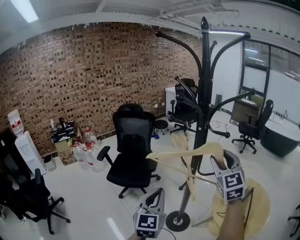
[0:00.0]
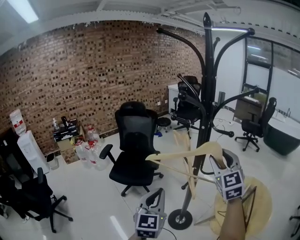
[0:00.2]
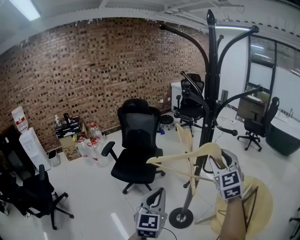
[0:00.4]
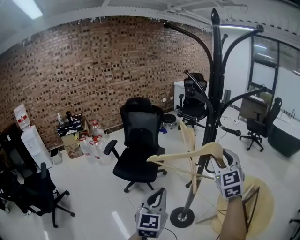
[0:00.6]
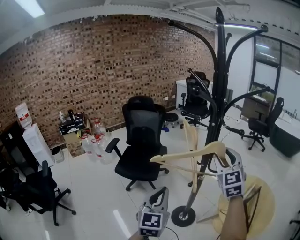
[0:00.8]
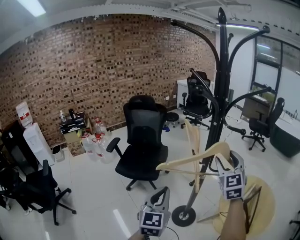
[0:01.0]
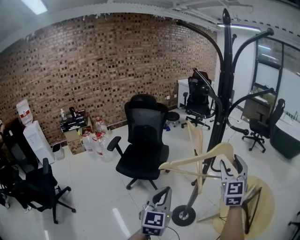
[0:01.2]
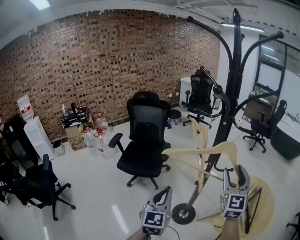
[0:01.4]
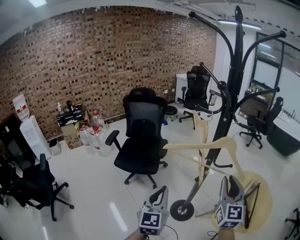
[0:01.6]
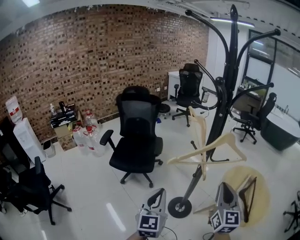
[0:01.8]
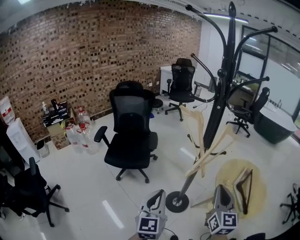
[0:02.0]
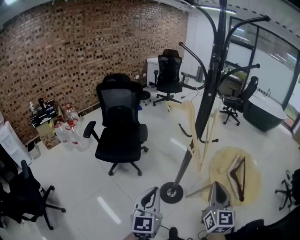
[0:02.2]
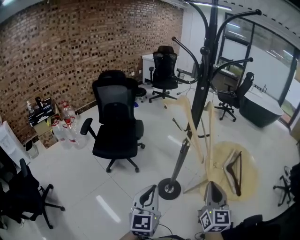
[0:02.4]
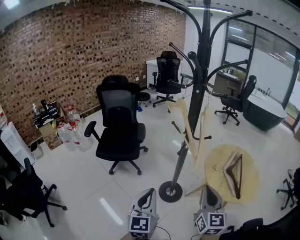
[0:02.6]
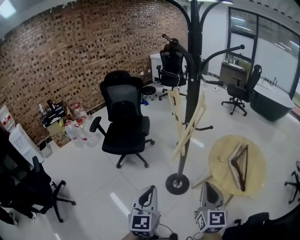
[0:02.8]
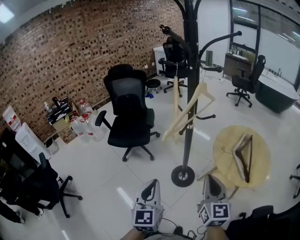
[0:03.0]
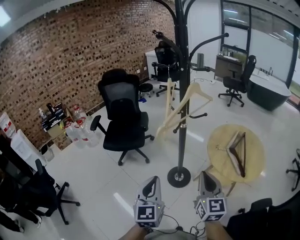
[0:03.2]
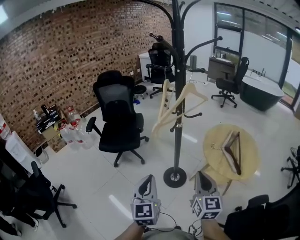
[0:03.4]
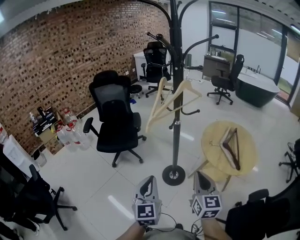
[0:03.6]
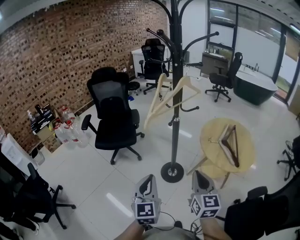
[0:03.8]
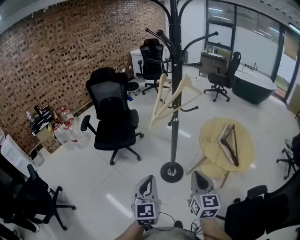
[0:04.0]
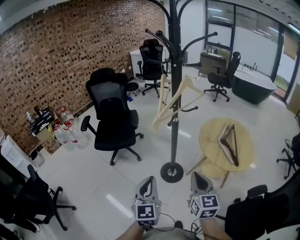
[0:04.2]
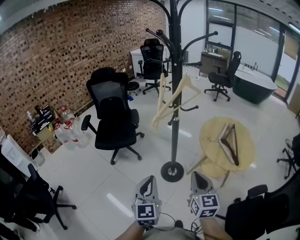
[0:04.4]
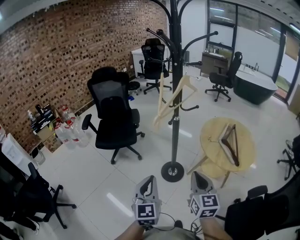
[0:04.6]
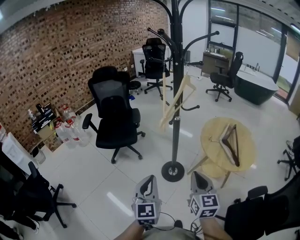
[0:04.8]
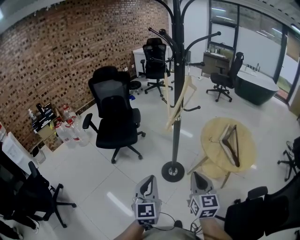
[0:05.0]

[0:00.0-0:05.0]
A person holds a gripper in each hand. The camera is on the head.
0:00.0 to 0:01.6: The right gripper moves downward and backward, some 15 cm. The left gripper heads to the left and downward, covering roughly 10 cm.
0:01.6 to 0:03.4: The right gripper is displaced backward and downward by about 30 cm, and closes. The left gripper shifts about 20 cm backward.
0:03.4 to 0:05.0: The right gripper changes place by some 5 cm.

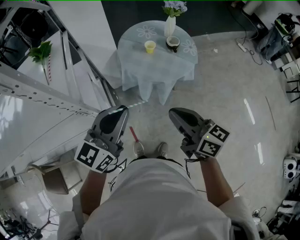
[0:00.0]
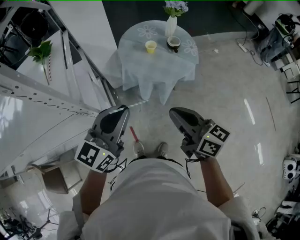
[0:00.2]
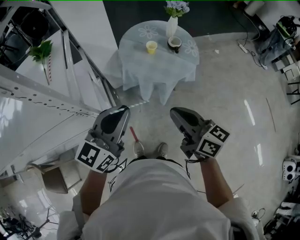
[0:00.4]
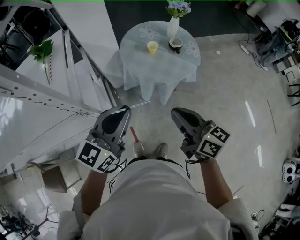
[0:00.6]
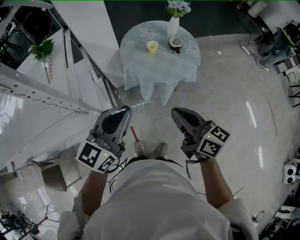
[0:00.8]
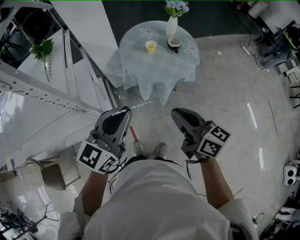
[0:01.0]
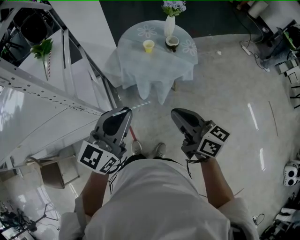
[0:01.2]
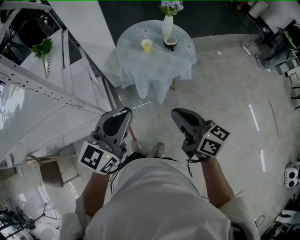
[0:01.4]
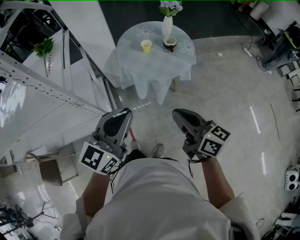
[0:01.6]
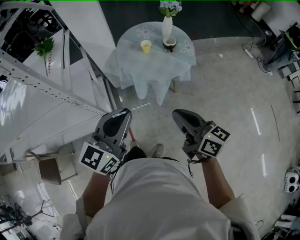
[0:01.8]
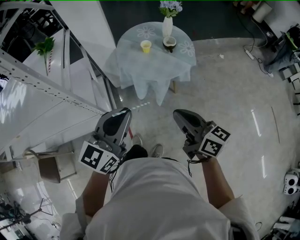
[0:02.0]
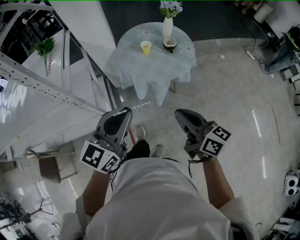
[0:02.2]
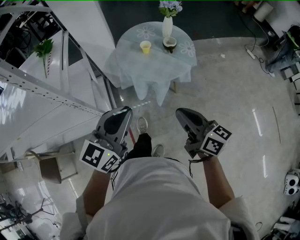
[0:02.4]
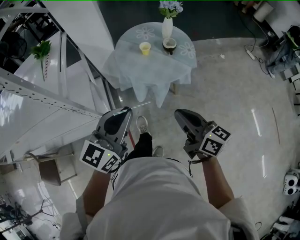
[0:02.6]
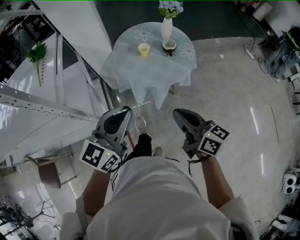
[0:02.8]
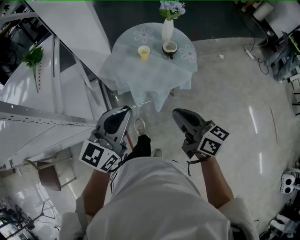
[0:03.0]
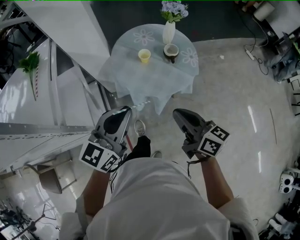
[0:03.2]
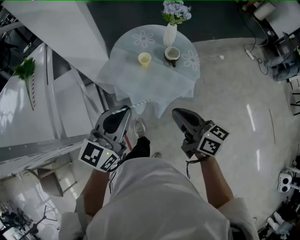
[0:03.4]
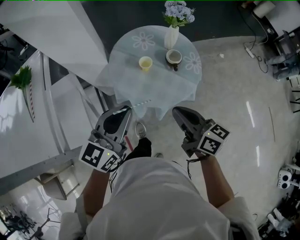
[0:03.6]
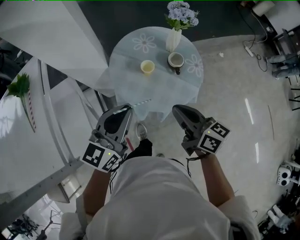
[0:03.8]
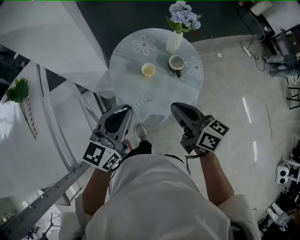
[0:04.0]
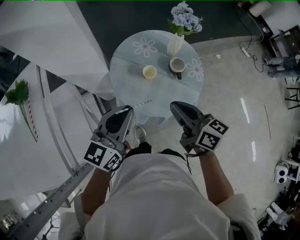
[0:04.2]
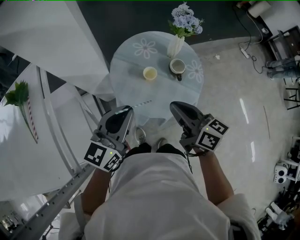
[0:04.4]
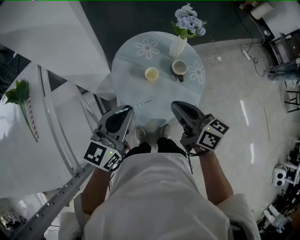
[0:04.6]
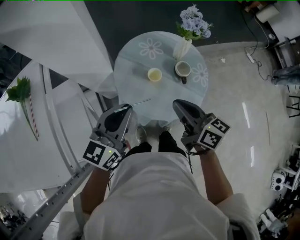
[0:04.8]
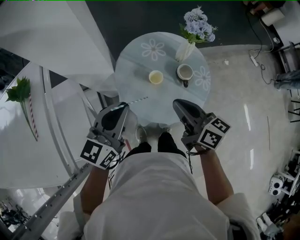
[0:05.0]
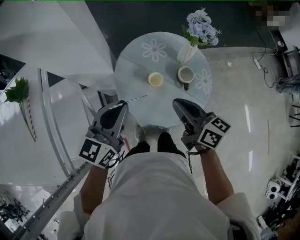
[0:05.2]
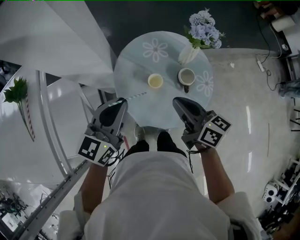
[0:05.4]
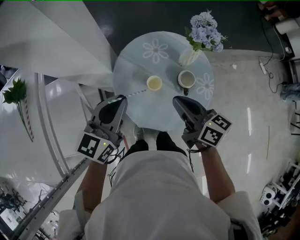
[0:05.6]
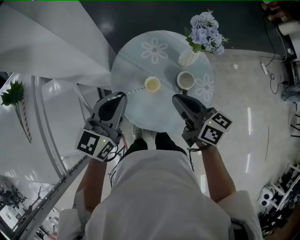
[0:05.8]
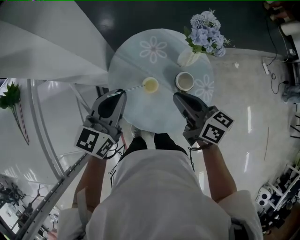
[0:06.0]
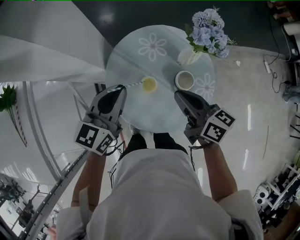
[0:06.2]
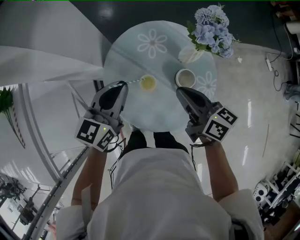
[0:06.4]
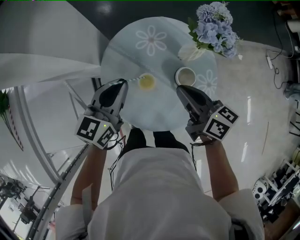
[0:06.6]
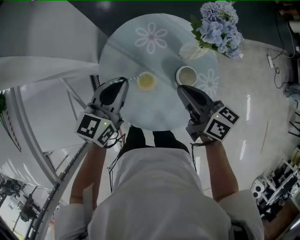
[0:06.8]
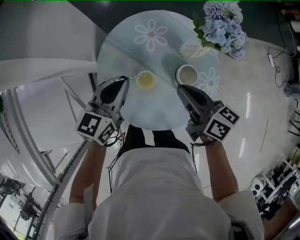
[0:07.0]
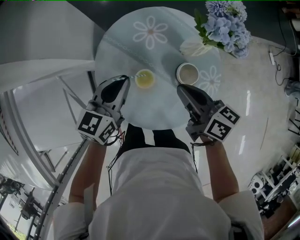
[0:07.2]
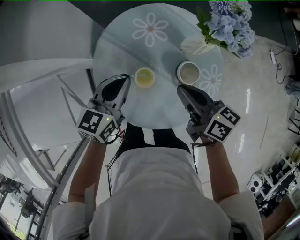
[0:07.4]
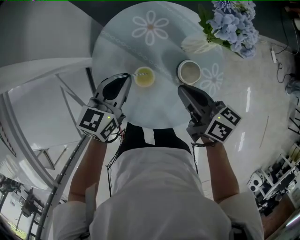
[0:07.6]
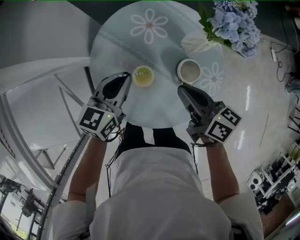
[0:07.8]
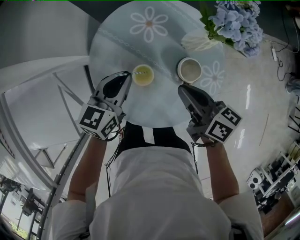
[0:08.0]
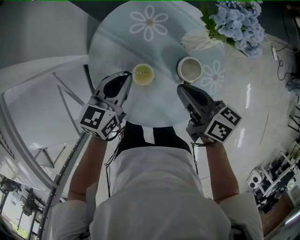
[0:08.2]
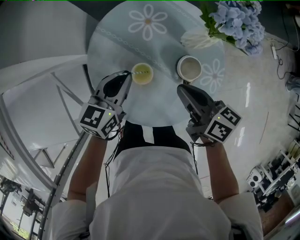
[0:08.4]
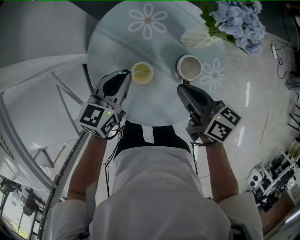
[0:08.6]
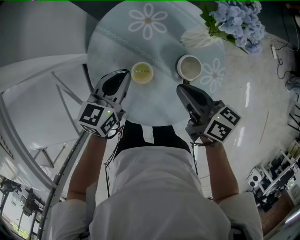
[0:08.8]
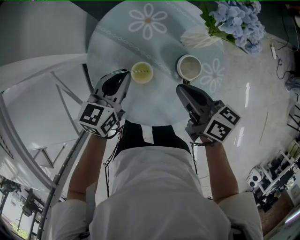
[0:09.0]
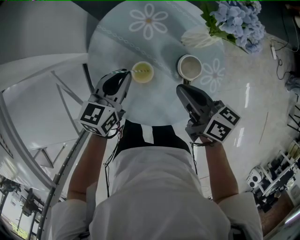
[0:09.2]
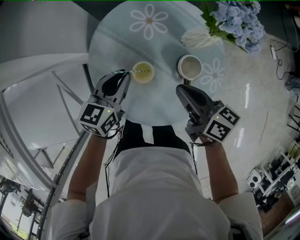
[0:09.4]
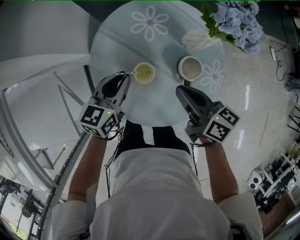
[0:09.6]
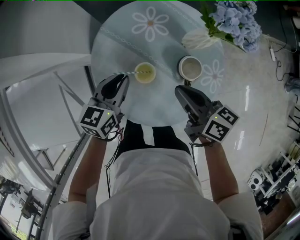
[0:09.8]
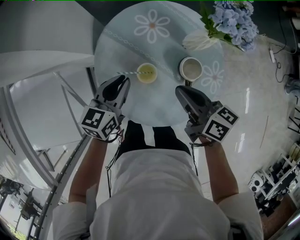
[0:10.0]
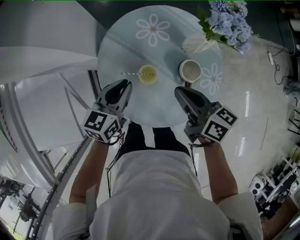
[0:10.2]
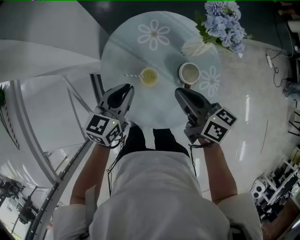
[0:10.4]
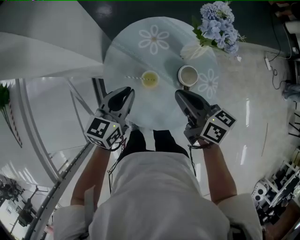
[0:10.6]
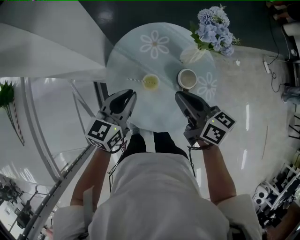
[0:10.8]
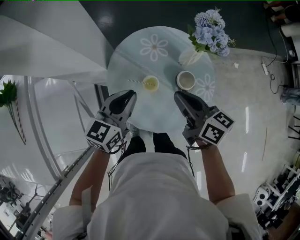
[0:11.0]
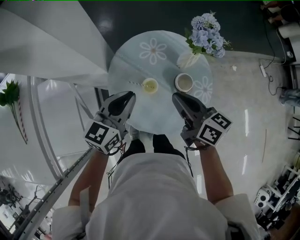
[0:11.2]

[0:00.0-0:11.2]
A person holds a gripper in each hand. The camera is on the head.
0:00.0 to 0:01.6: The left gripper heads to the right and backward, covering roughly 10 cm. The right gripper travels to the right by some 10 cm.
0:01.6 to 0:03.2: The grippers both shift forward by some 15 cm.
0:03.2 to 0:04.8: Both grippers travel together forward, about 20 cm.
0:04.8 to 0:06.4: The left gripper heads forward, downward and to the right, covering some 20 cm, while the right gripper shifts some 20 cm forward, to the right and downward.
0:06.4 to 0:08.0: The left gripper heads downward, covering roughly 15 cm, while the right gripper is displaced downward by approximately 10 cm.
0:08.0 to 0:09.6: The grippers stay close to where they were, moving slightly.
0:09.6 to 0:11.2: Both grippers travel together upward, some 15 cm.

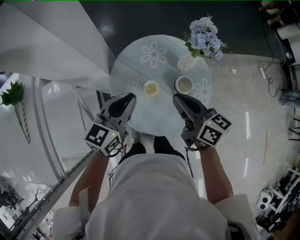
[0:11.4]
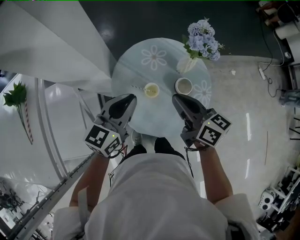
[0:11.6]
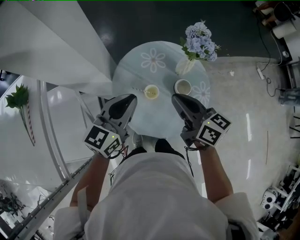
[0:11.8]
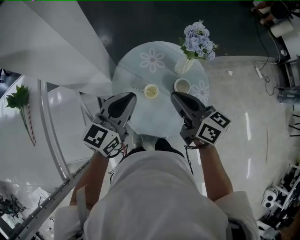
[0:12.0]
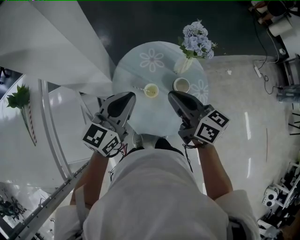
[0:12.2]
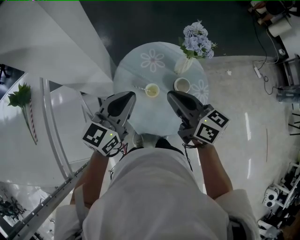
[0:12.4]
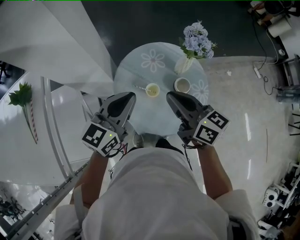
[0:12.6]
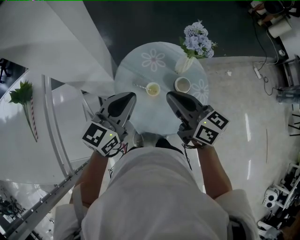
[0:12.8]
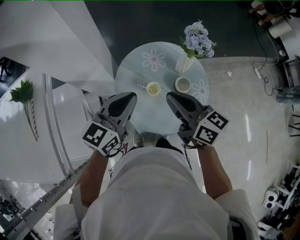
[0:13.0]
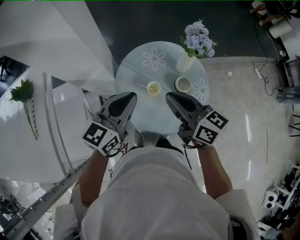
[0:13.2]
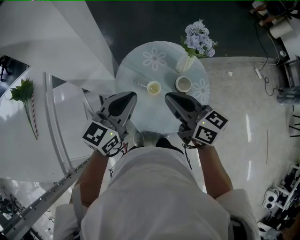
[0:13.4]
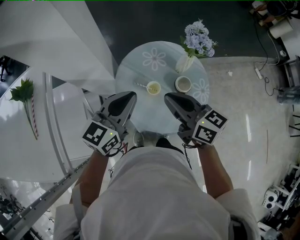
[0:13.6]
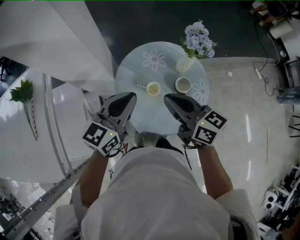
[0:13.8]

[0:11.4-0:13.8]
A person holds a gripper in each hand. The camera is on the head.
0:11.4 to 0:12.6: Both grippers travel together upward, roughly 5 cm.
0:12.6 to 0:13.8: The grippers move only a little.

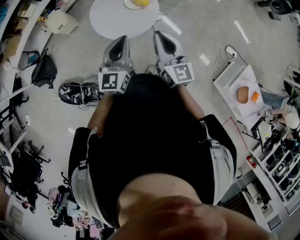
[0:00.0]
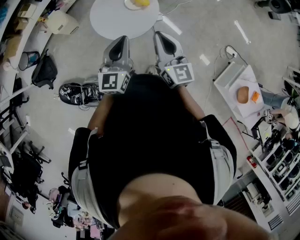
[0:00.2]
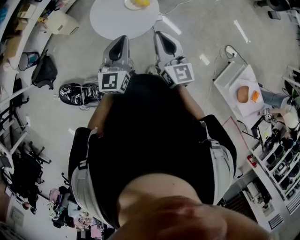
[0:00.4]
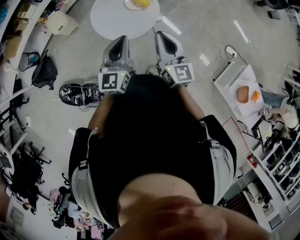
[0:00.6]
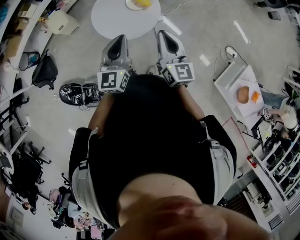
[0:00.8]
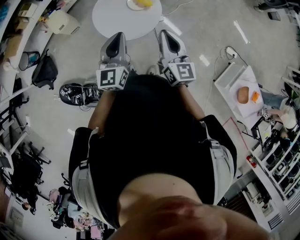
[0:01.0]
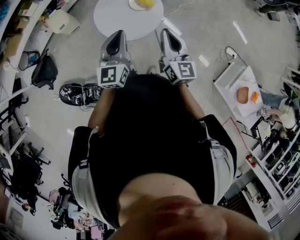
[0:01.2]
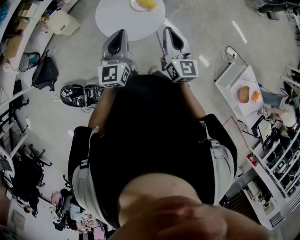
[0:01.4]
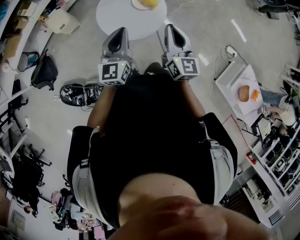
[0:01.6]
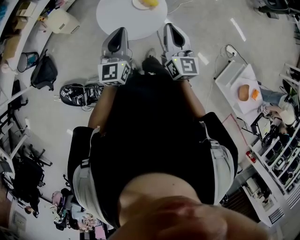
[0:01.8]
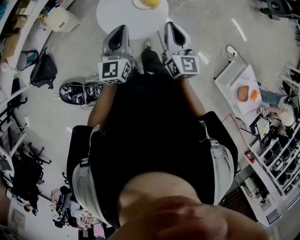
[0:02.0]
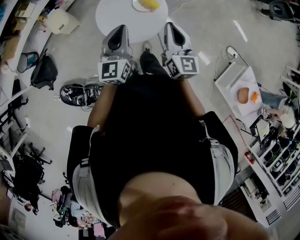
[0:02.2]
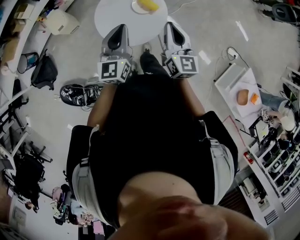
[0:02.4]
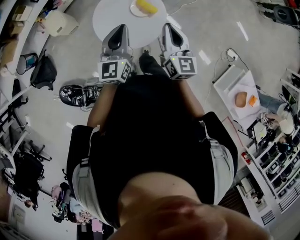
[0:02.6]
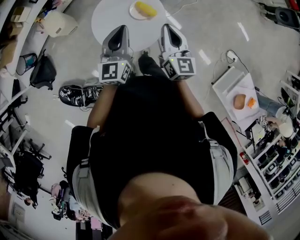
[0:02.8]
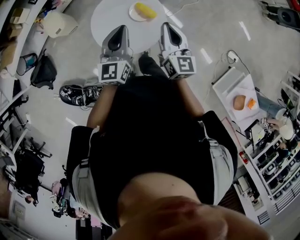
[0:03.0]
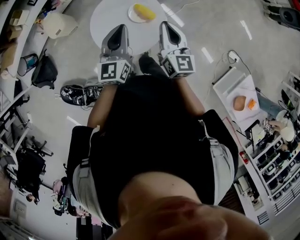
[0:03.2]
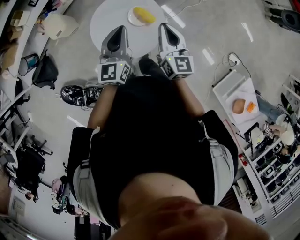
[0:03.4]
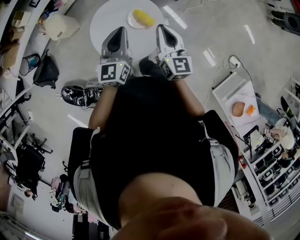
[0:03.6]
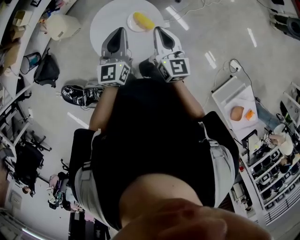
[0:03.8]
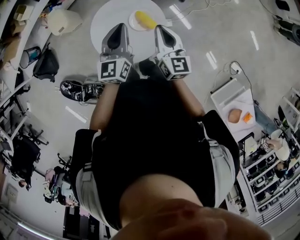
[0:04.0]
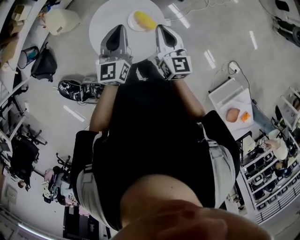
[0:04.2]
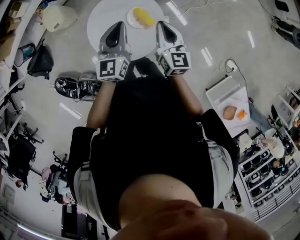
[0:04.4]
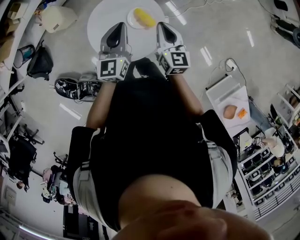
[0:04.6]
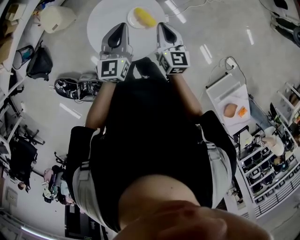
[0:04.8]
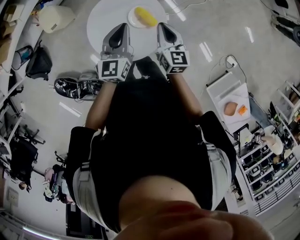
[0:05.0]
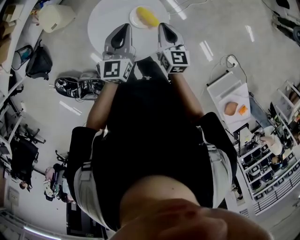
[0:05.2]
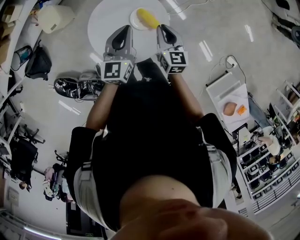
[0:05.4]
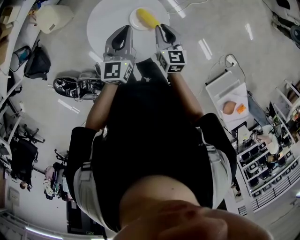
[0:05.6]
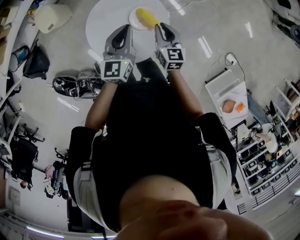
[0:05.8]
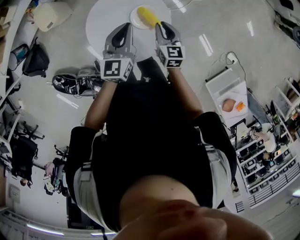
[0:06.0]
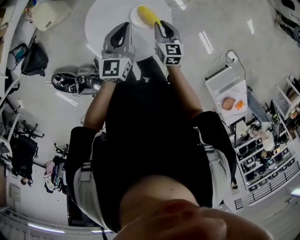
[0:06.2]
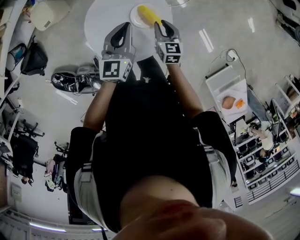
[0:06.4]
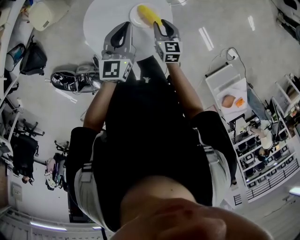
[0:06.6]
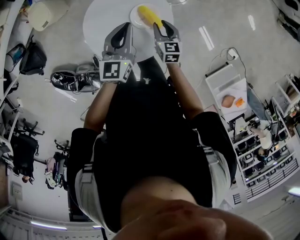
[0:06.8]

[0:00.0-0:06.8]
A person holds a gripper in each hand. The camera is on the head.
0:00.0 to 0:01.4: The left gripper heads to the left, covering some 5 cm.
0:01.4 to 0:02.8: Both grippers travel together forward, some 15 cm.
0:02.8 to 0:04.0: The grippers both shift forward by some 10 cm.
0:04.0 to 0:05.4: The left gripper moves downward, about 5 cm, while the right gripper shifts some 10 cm downward.
0:05.4 to 0:06.8: The right gripper heads downward, covering about 15 cm; the left gripper travels downward by some 5 cm.
